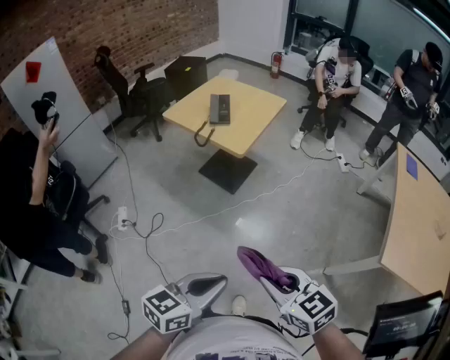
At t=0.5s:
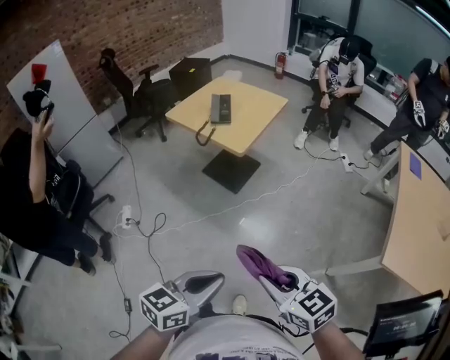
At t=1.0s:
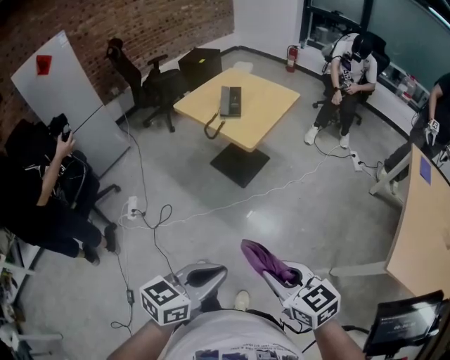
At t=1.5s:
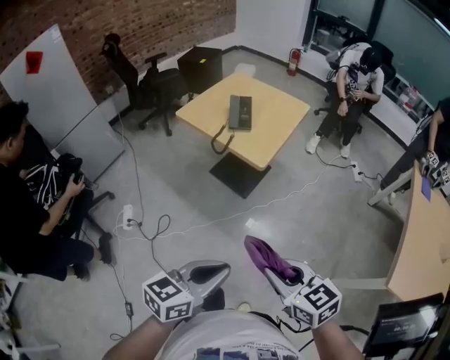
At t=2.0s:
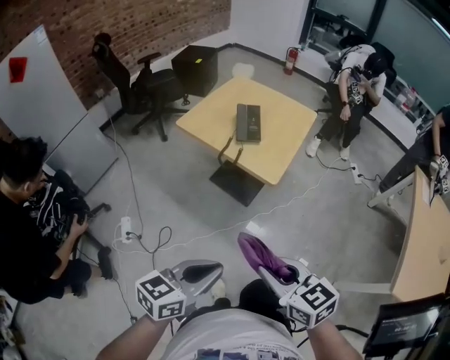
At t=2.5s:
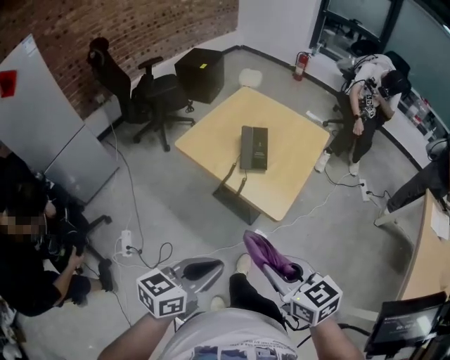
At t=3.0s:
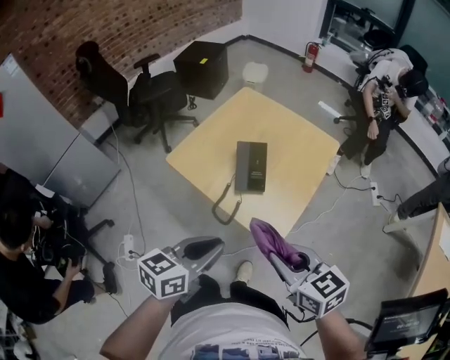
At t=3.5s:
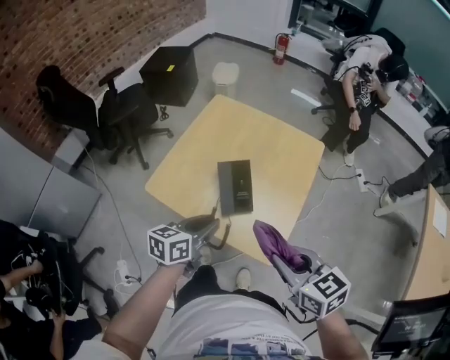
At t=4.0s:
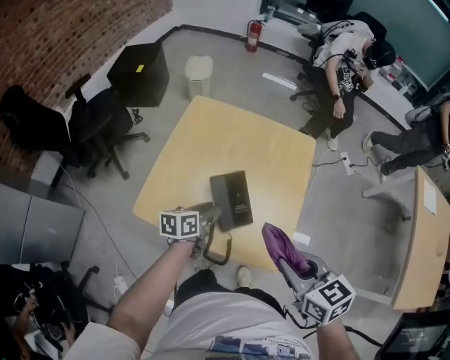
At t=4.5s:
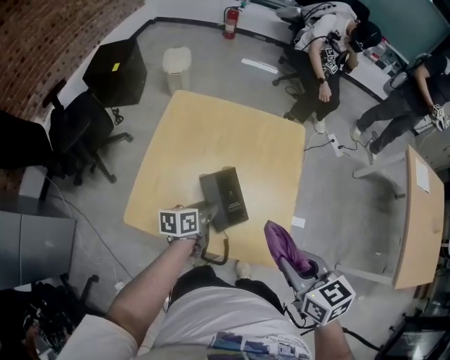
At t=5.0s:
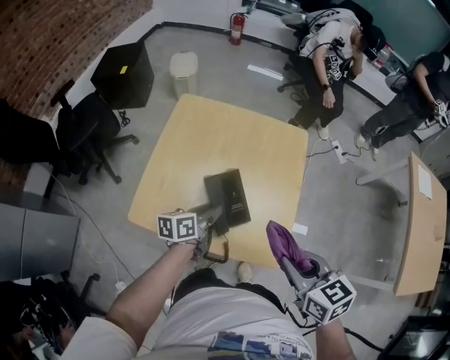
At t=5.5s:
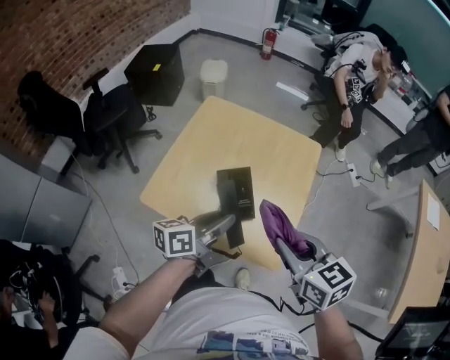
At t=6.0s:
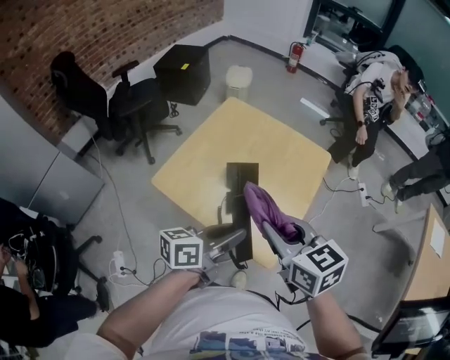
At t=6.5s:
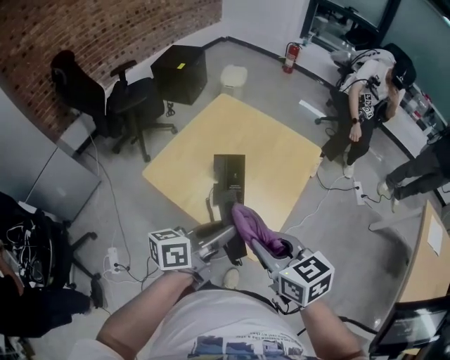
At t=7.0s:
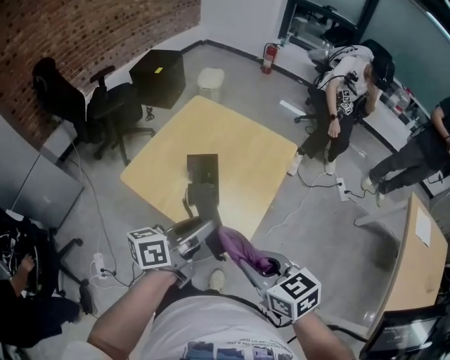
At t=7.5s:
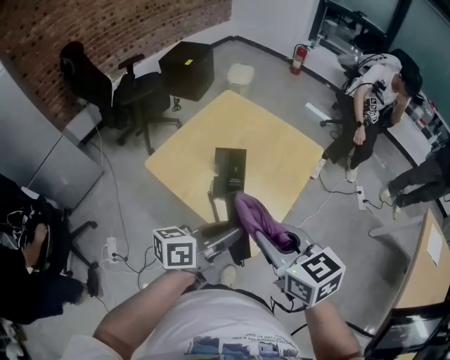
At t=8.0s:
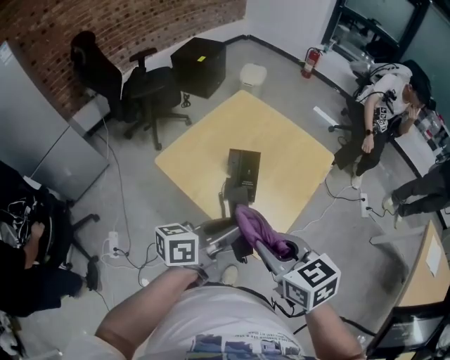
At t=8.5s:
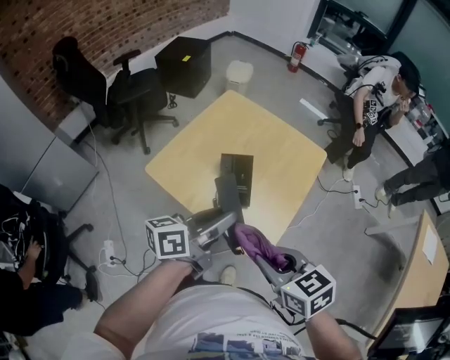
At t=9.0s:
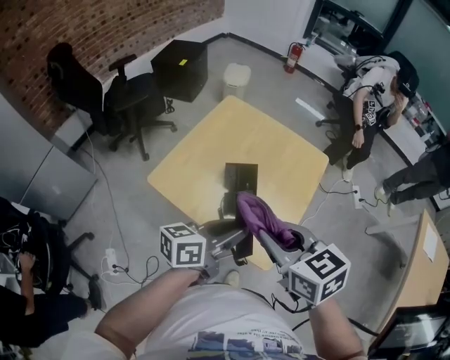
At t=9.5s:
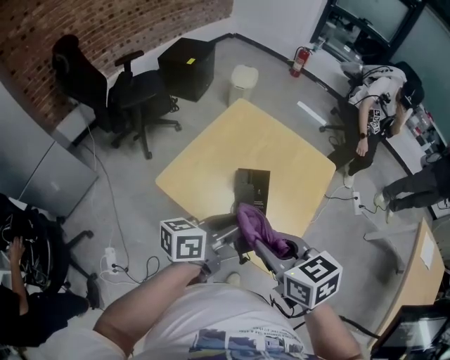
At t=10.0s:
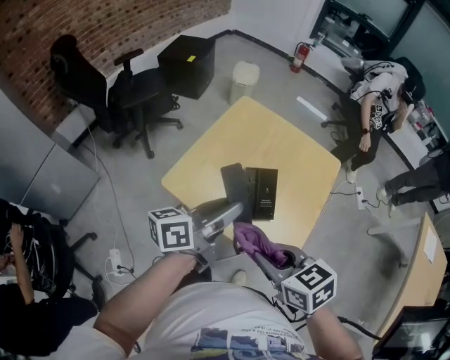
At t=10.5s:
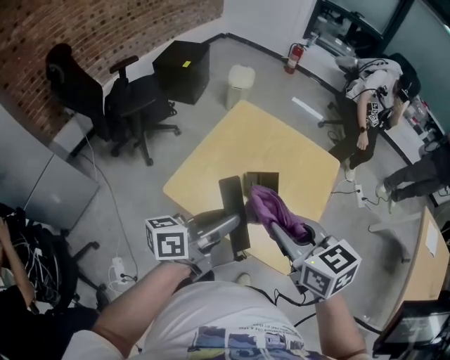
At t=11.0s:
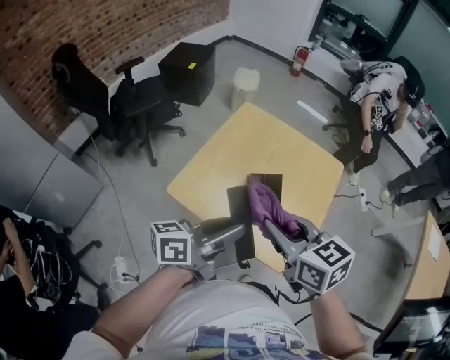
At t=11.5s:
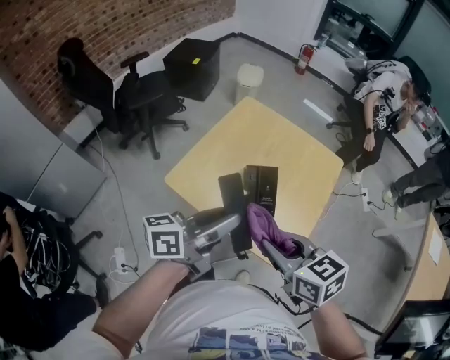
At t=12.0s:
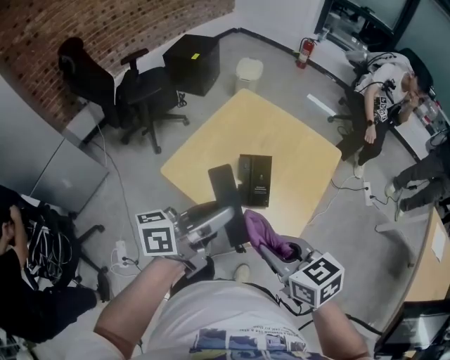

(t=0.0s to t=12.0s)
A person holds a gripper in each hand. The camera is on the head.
t=0.0s - t=2.0s: The grippers both shift forward and to the left by about 25 cm.
t=2.0s - t=4.0s: The left gripper heads forward, covering about 60 cm, turns by approximately 20 degrees, and opens, while the right gripper moves forward, roughly 35 cm, and turns by about 20 degrees.
t=4.0s - t=6.0s: The left gripper moves upward, backward and to the right, approximately 20 cm, and rotates roughly 20 degrees. Meanwhile the right gripper shifts about 5 cm upward.
t=6.0s - t=8.0s: The right gripper is displaced backward by approximately 5 cm.
t=8.0s - t=10.0s: The right gripper is displaced to the left by about 10 cm. Meanwhile the left gripper travels forward and to the left by approximately 15 cm.
t=10.0s - t=12.0s: The left gripper shifts about 5 cm backward. The right gripper travels forward and back again, roughly 10 cm each way.

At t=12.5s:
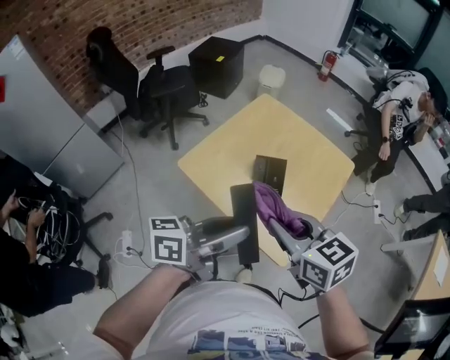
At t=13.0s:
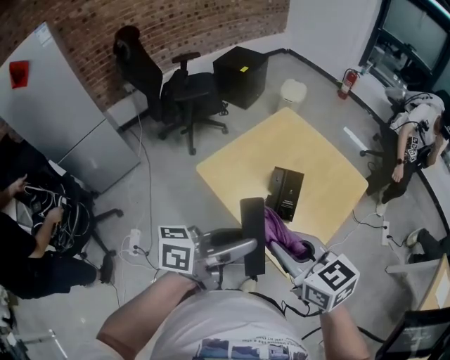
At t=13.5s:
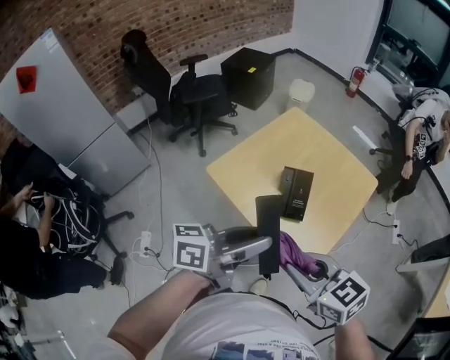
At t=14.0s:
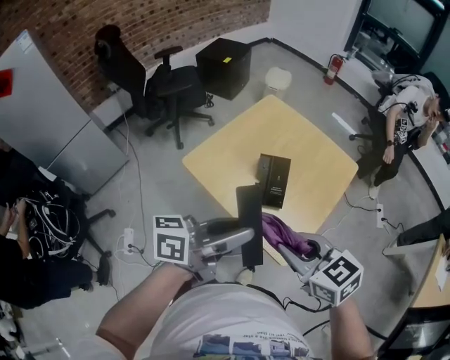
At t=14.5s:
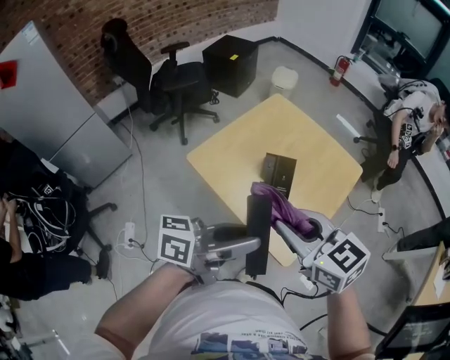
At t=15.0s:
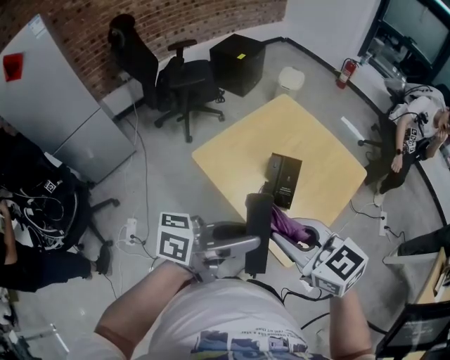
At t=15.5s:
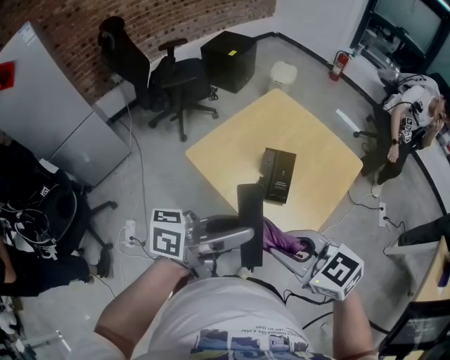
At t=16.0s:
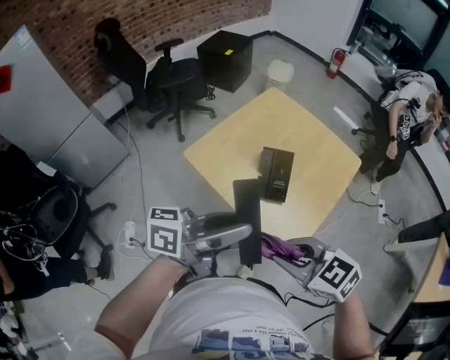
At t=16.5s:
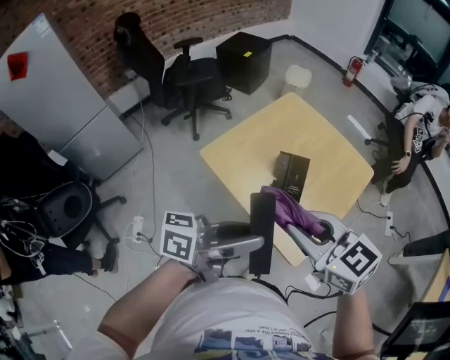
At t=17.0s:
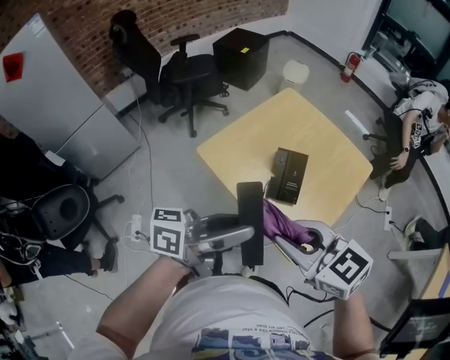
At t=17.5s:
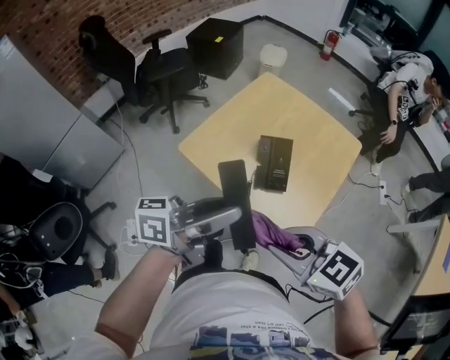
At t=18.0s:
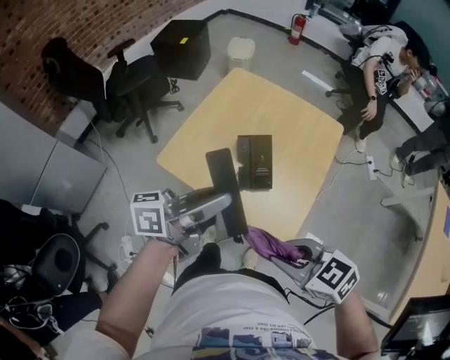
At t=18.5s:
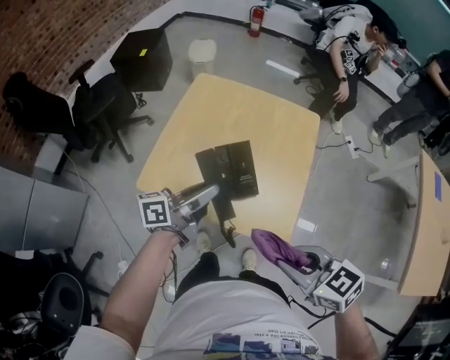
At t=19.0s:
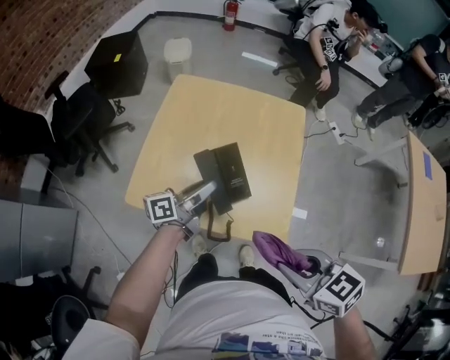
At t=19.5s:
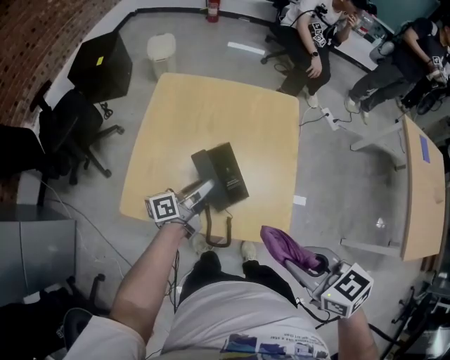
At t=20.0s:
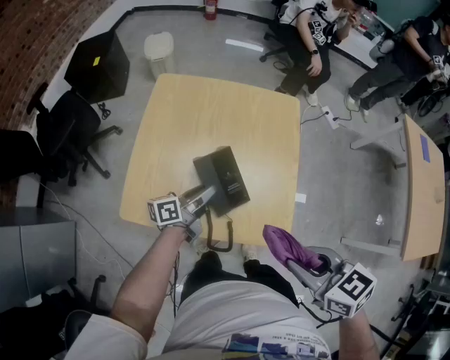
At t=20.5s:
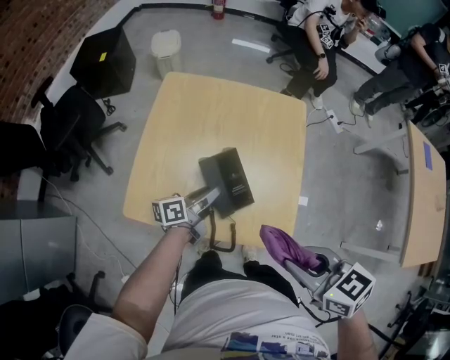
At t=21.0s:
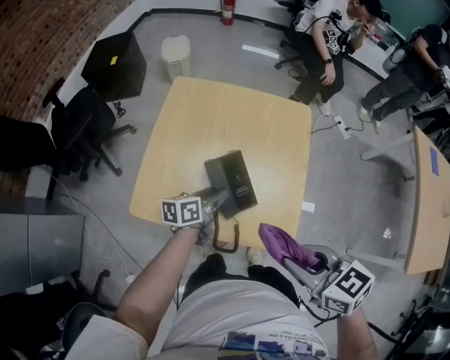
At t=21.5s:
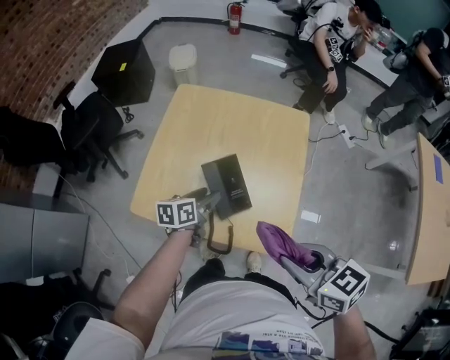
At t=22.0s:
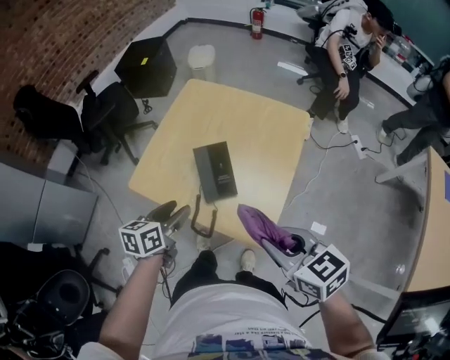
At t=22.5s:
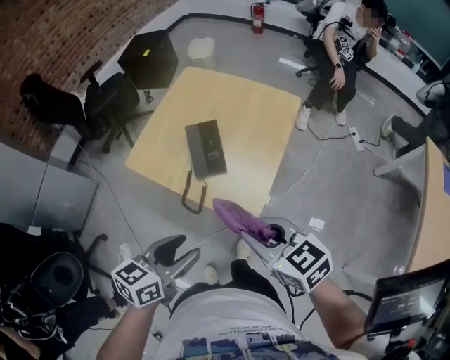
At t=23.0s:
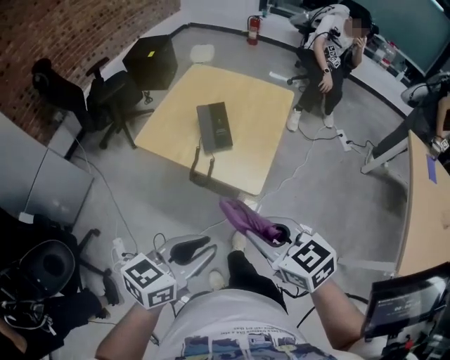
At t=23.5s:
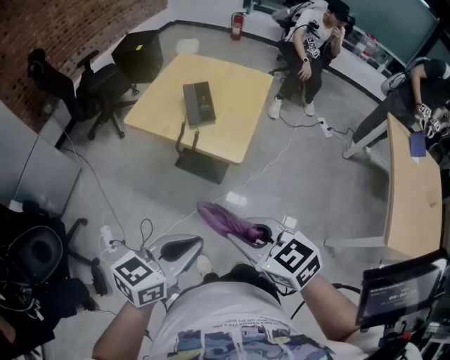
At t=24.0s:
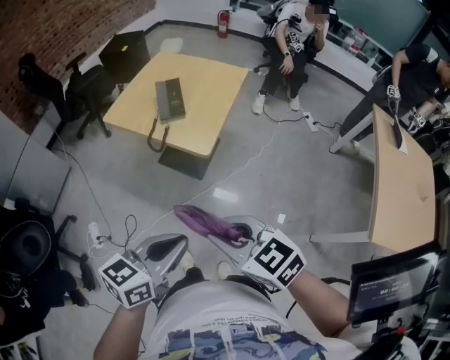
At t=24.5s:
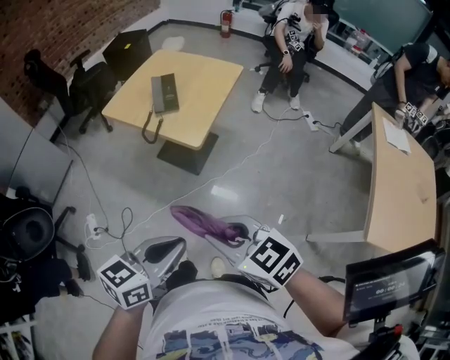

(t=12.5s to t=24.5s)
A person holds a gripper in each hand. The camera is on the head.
t=12.5s - t=14.5s: The right gripper travels backward and back again, approximately 10 cm each way.
t=16.5s - t=18.5s: The right gripper ends up approximately 10 cm from where it was, and changes its angle by some 30 degrees. The left gripper moves roughly 20 cm.
t=18.5s - t=20.5s: The left gripper travels downward by about 15 cm.
t=20.5s - t=22.5s: The right gripper changes place by about 5 cm, and swivels some 20 degrees. Meanwhile the left gripper moves backward and upward, some 35 cm, swivels roughly 40 degrees, and opens up.
t=22.5s - t=24.5s: The right gripper shifts about 30 cm backward; the left gripper travels backward and to the right by roughly 30 cm, and closes up.

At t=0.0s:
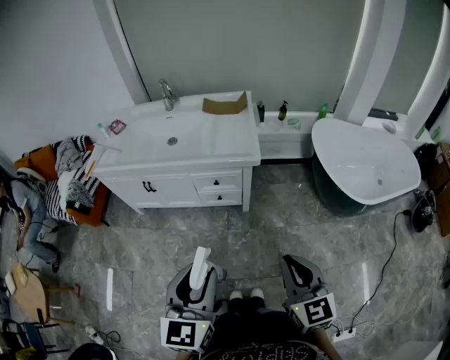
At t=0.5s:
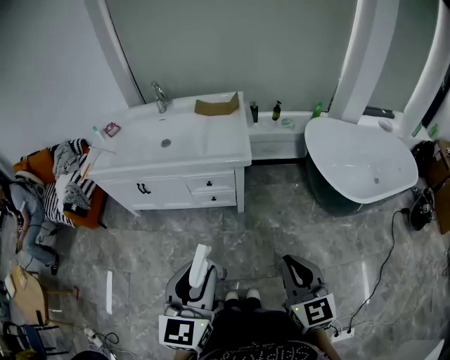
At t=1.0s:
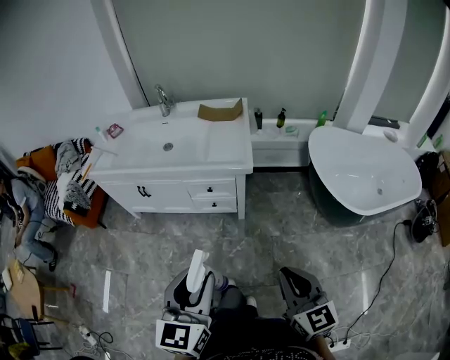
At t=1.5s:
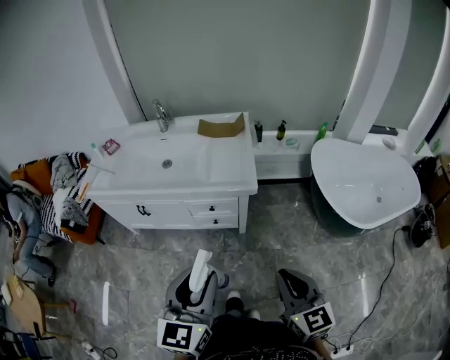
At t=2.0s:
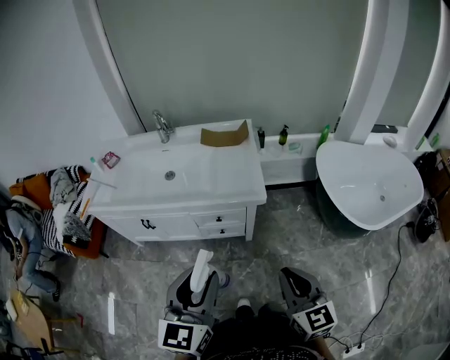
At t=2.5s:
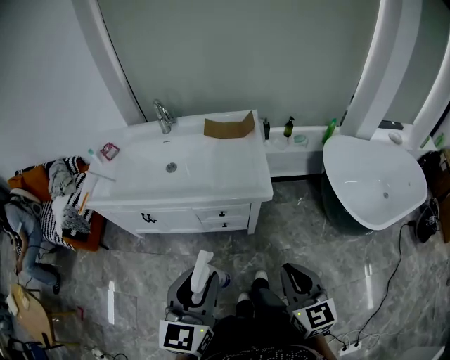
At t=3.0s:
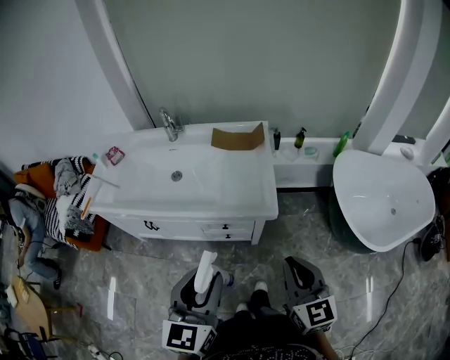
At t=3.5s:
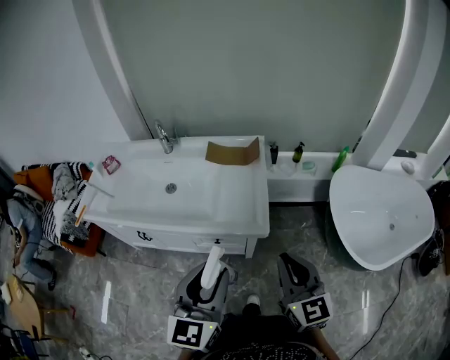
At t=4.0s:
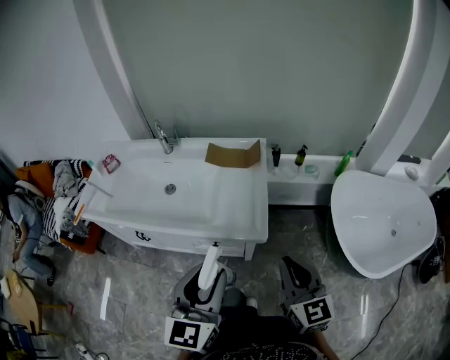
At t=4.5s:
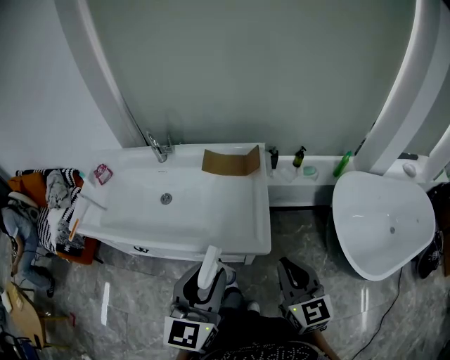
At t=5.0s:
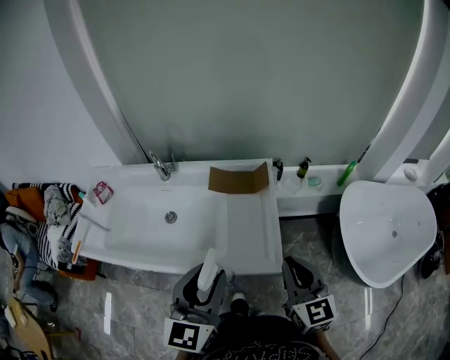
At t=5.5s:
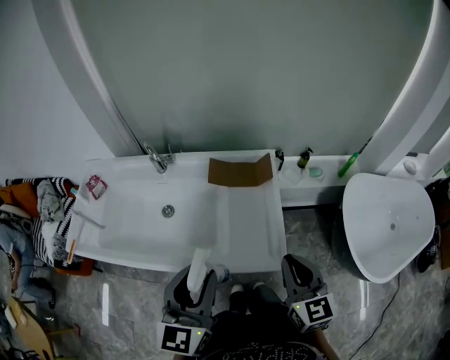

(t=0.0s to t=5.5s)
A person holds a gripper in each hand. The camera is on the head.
t=0.0s - t=2.0s: The grippers both shift forward by roughly 15 cm.
t=2.0s - t=3.5s: The right gripper travels forward by approximately 20 cm, while the left gripper travels forward and to the right by approximately 15 cm.
t=3.5s - t=5.5s: The left gripper is displaced forward and to the left by approximately 20 cm; the right gripper shifts roughly 15 cm forward.
